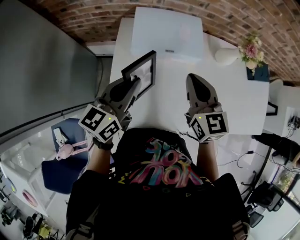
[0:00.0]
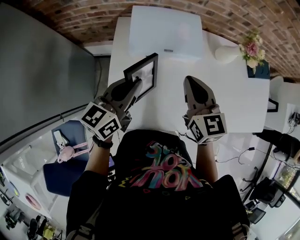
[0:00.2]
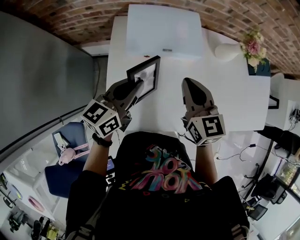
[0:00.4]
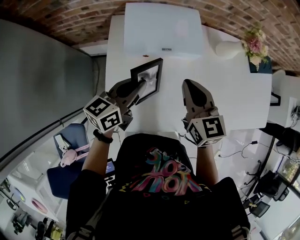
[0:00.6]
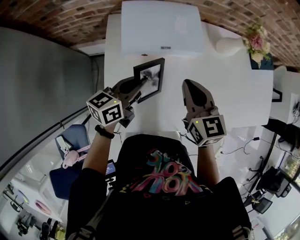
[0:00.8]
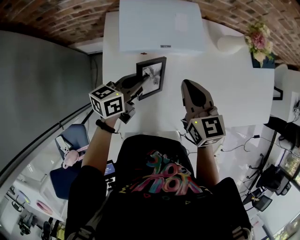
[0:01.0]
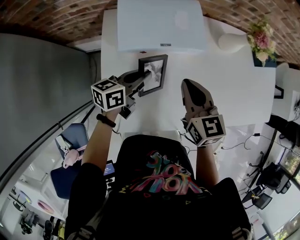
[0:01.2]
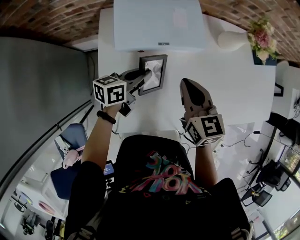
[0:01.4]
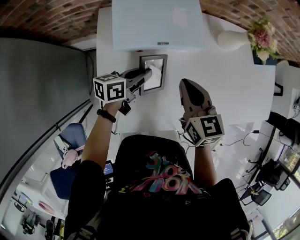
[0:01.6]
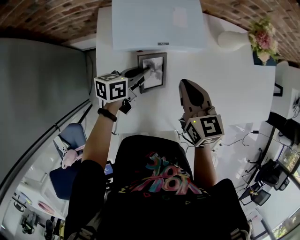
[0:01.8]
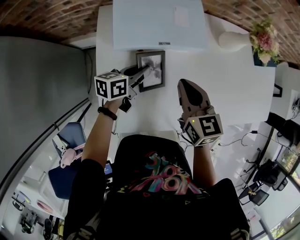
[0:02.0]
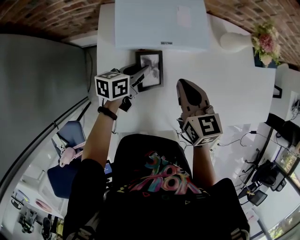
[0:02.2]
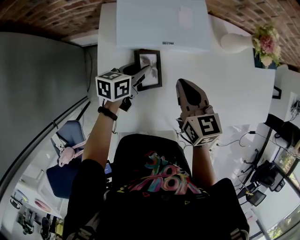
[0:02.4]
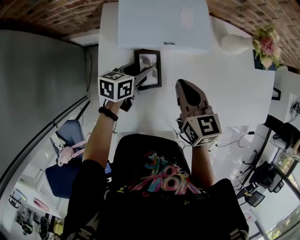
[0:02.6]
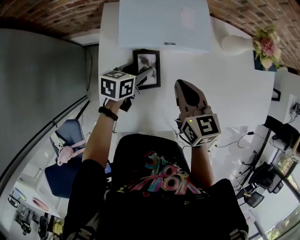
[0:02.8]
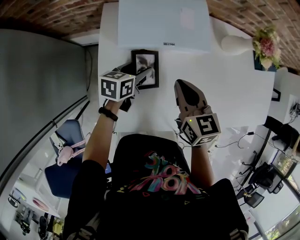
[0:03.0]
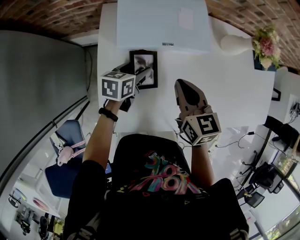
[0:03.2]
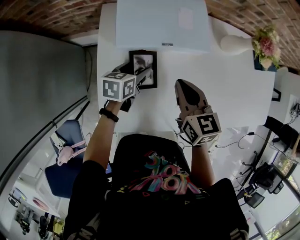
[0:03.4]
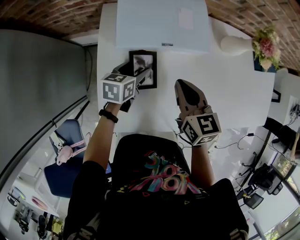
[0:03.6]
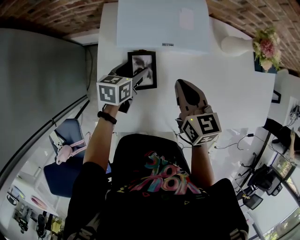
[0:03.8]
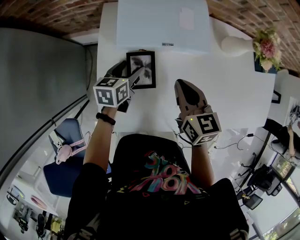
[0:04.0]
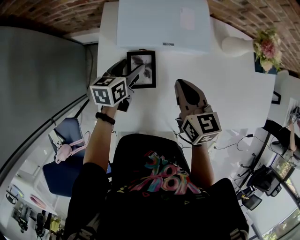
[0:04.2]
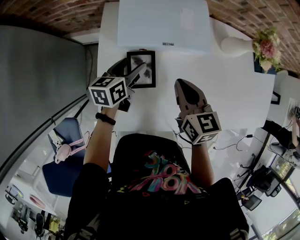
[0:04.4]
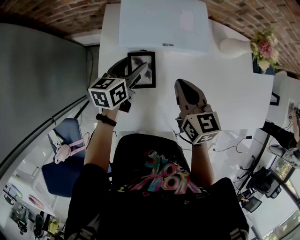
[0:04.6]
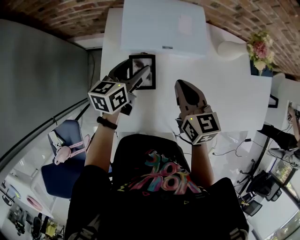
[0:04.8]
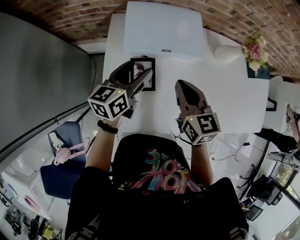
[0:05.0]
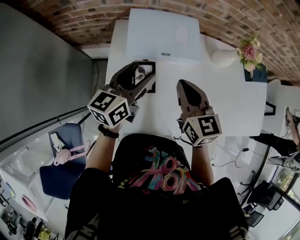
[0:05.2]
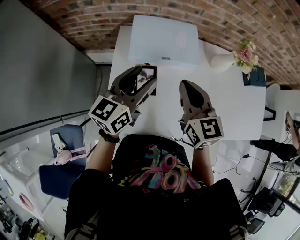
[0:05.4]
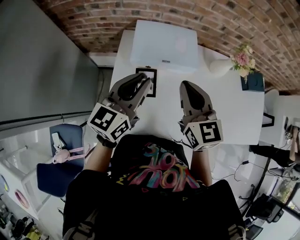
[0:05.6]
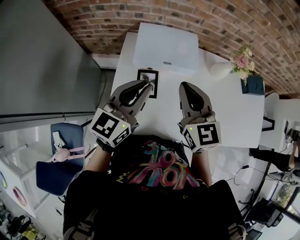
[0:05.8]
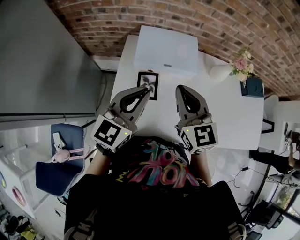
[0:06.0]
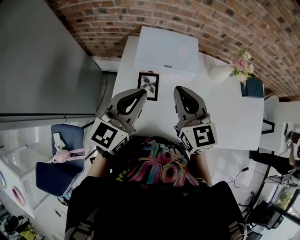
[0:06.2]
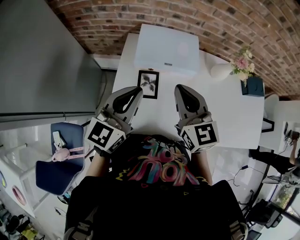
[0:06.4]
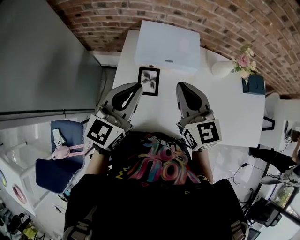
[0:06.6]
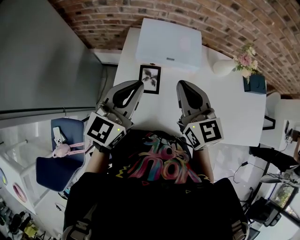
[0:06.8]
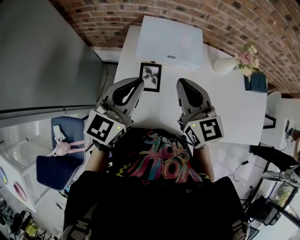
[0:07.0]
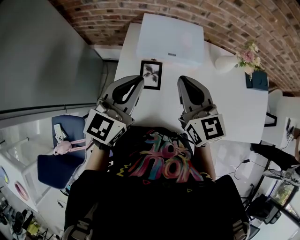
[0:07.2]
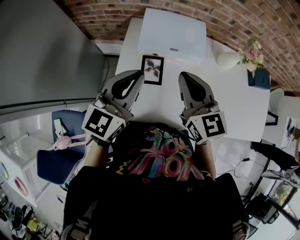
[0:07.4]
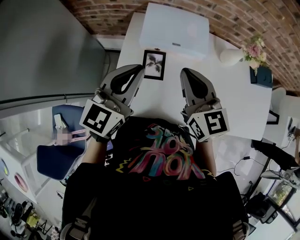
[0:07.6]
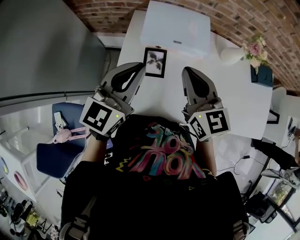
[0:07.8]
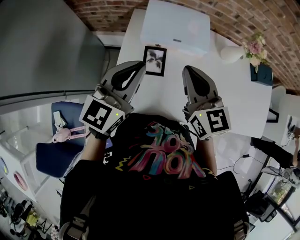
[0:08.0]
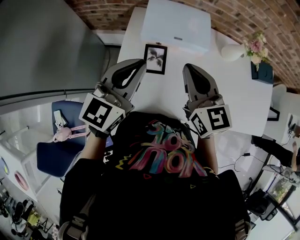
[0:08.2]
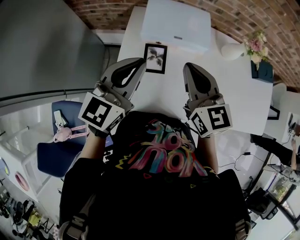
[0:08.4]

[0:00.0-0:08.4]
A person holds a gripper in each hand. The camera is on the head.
0:00.0 to 0:01.4: The right gripper shifts approximately 10 cm downward, while the left gripper goes about 20 cm downward and forward, and swivels roughly 40 degrees.
0:01.4 to 0:02.8: The left gripper moves roughly 5 cm, and opens.
0:02.8 to 0:04.2: The grippers move only a little.
0:04.2 to 0:05.6: The right gripper moves upward, approximately 20 cm, and swivels roughly 30 degrees; the left gripper shifts some 30 cm upward, swivels some 40 degrees, and closes its fingers.
0:05.6 to 0:08.4: There are only small adjustments of the grippers.

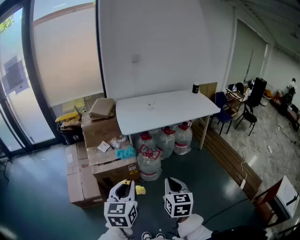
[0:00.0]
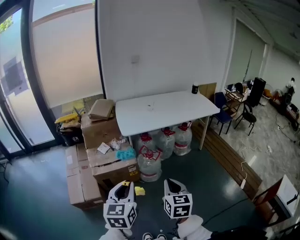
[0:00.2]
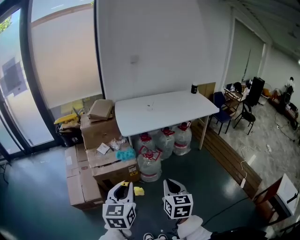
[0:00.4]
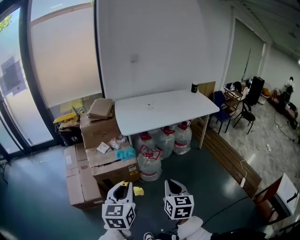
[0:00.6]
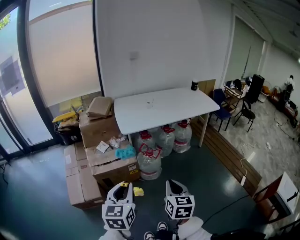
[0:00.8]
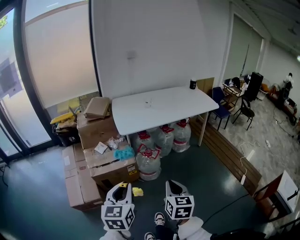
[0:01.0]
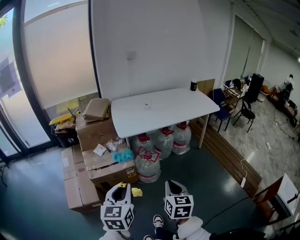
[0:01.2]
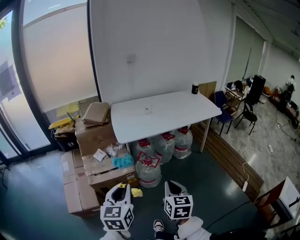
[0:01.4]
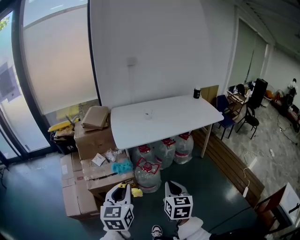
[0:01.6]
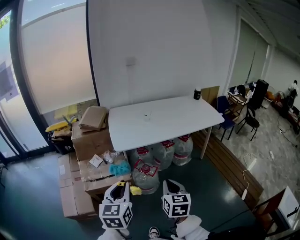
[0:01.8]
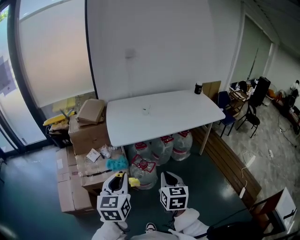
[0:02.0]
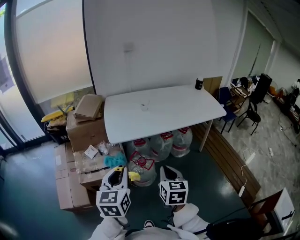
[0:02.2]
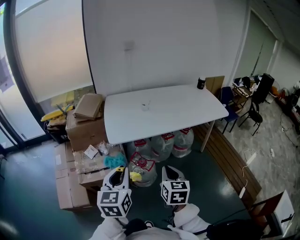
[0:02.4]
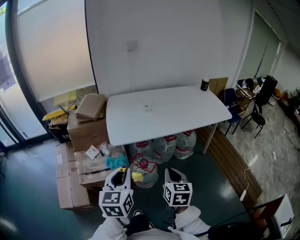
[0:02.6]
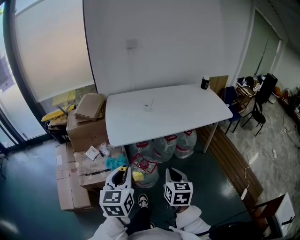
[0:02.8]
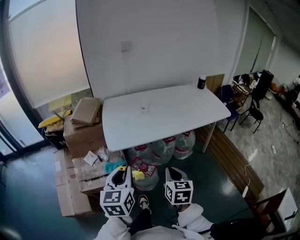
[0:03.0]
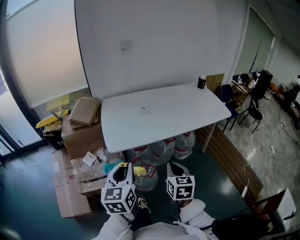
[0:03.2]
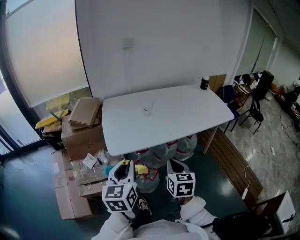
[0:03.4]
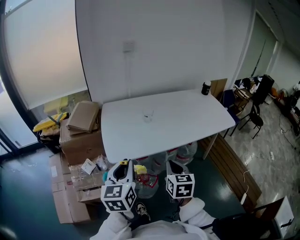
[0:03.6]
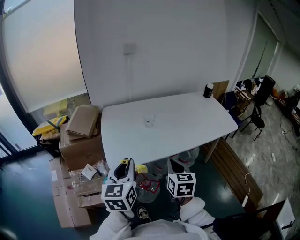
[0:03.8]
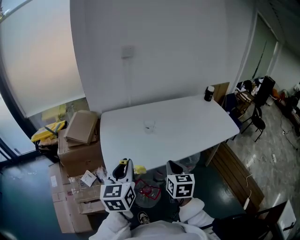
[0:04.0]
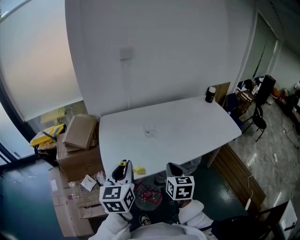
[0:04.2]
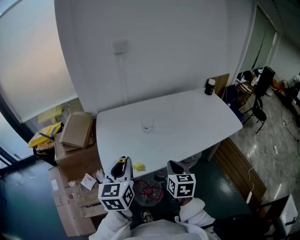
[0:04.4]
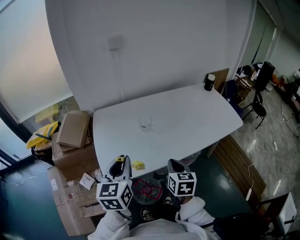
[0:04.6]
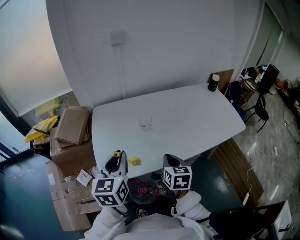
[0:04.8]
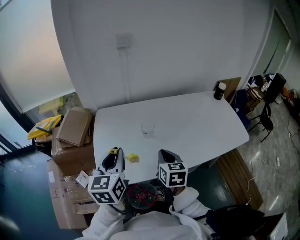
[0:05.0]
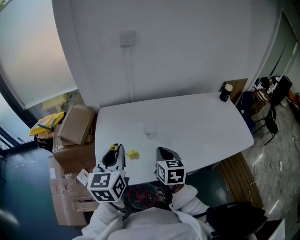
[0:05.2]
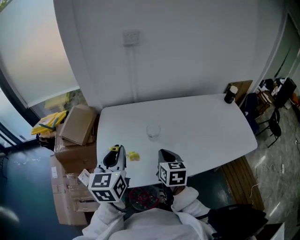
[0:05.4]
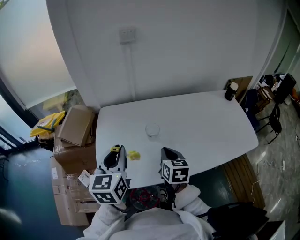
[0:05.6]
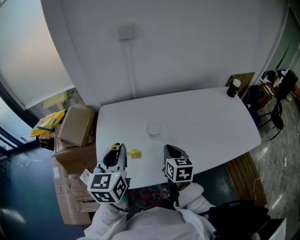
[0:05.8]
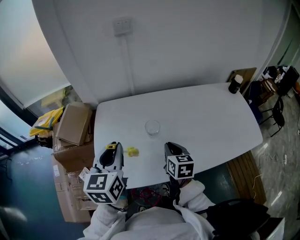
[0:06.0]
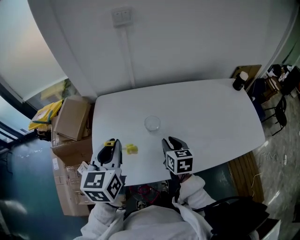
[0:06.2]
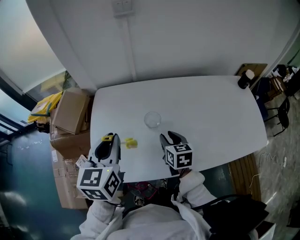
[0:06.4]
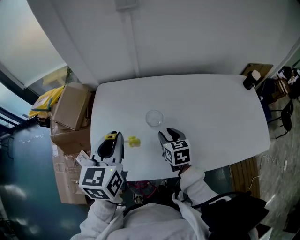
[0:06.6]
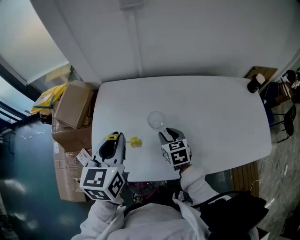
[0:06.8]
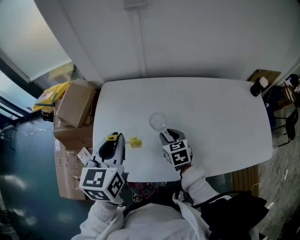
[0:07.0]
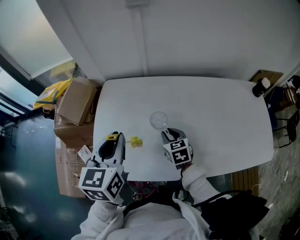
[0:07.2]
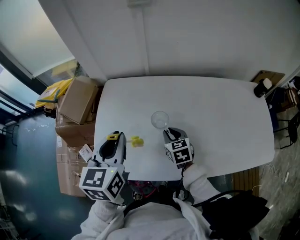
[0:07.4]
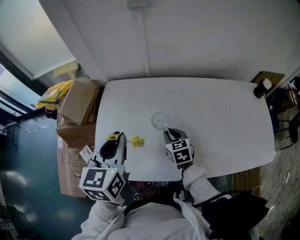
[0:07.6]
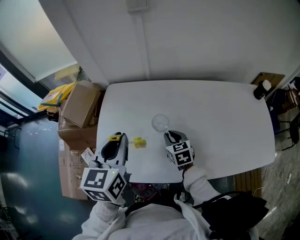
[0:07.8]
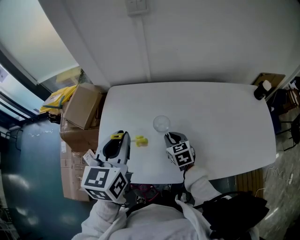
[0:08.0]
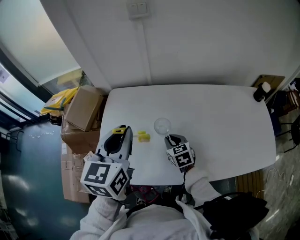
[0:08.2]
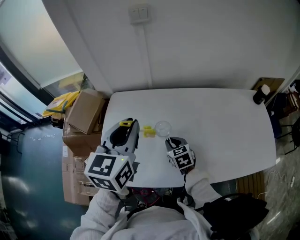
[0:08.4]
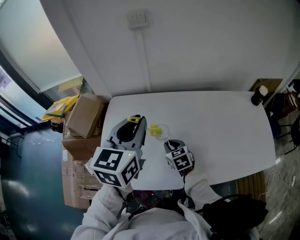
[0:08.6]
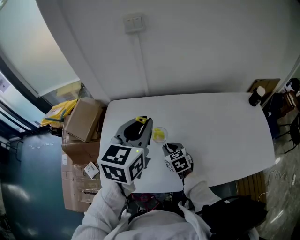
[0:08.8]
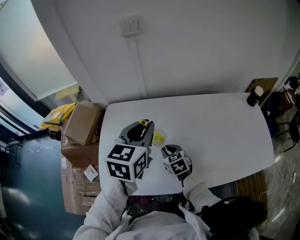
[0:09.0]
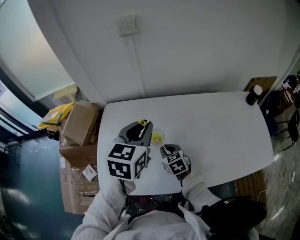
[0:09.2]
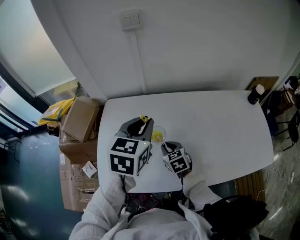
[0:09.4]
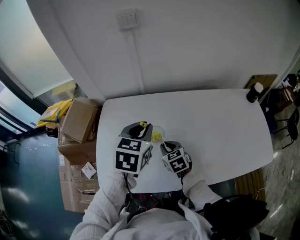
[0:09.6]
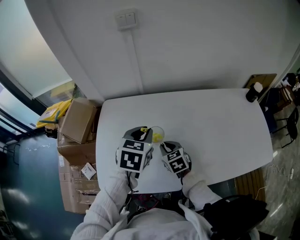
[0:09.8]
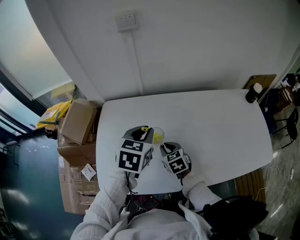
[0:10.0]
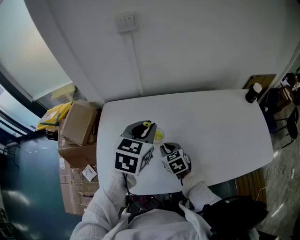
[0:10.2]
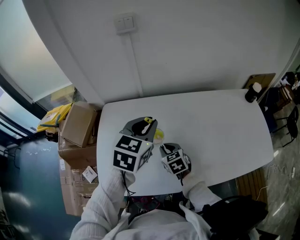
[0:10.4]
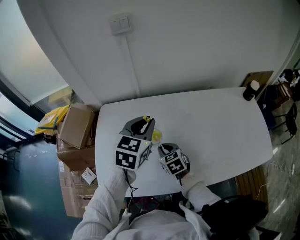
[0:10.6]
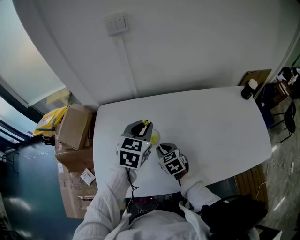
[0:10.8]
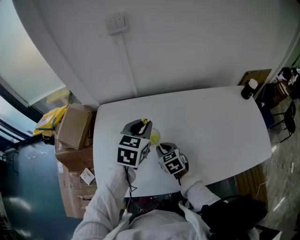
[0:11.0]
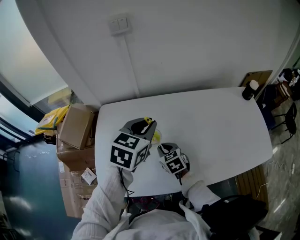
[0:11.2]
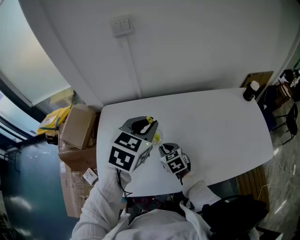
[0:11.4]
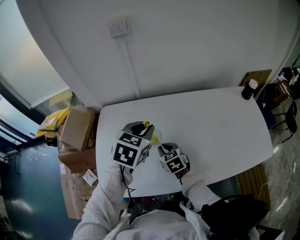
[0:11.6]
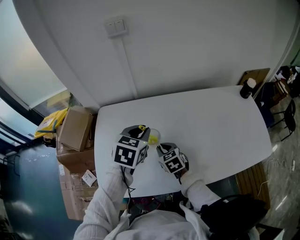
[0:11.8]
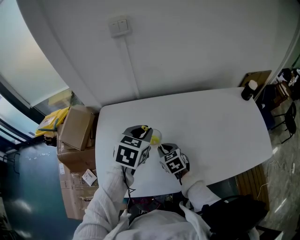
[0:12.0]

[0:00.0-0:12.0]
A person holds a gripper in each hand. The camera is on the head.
0:00.0 to 0:01.6: The two grippers go approximately 15 cm forward.
0:01.6 to 0:03.0: Both grippers move forward, approximately 15 cm.
0:03.0 to 0:04.4: Both grippers move forward, about 25 cm.
0:04.4 to 0:06.0: Both grippers move forward, roughly 20 cm.
0:06.0 to 0:07.6: The right gripper moves downward and forward, about 10 cm, and rotates about 30 degrees.
0:07.6 to 0:09.0: The left gripper moves to the right and forward, some 15 cm.
0:09.0 to 0:10.4: The left gripper travels downward and back again, roughly 10 cm each way.
0:10.4 to 0:12.0: The left gripper swings up and down, roughly 10 cm each way, with 2 reversals.

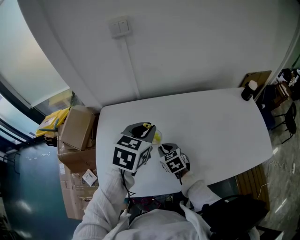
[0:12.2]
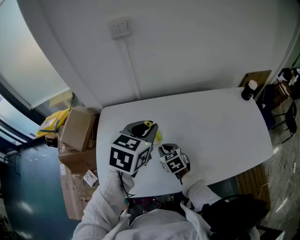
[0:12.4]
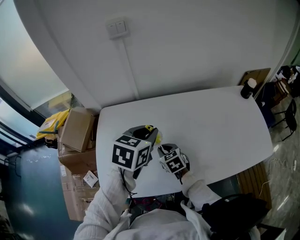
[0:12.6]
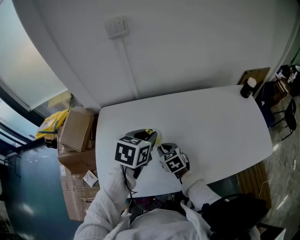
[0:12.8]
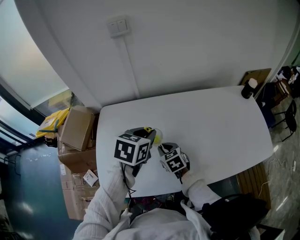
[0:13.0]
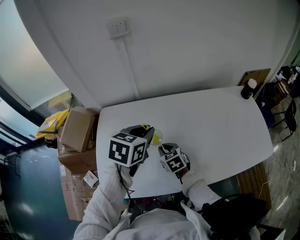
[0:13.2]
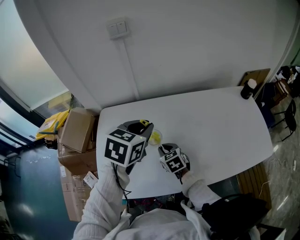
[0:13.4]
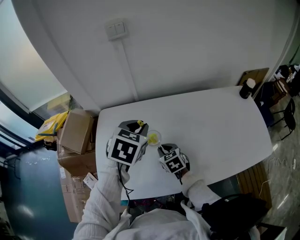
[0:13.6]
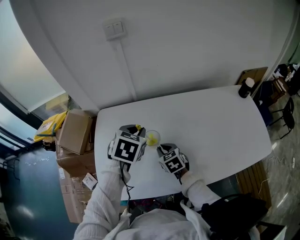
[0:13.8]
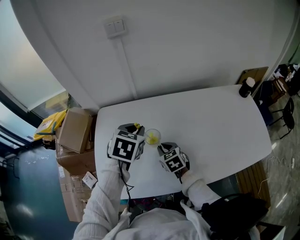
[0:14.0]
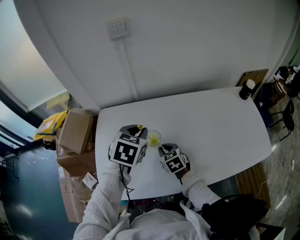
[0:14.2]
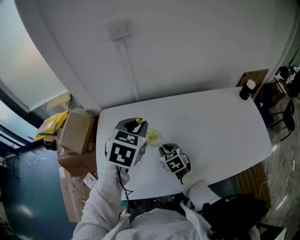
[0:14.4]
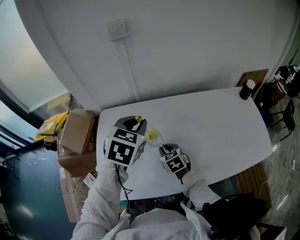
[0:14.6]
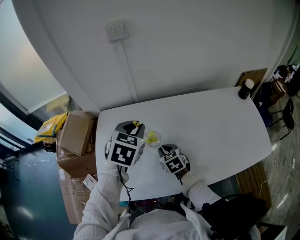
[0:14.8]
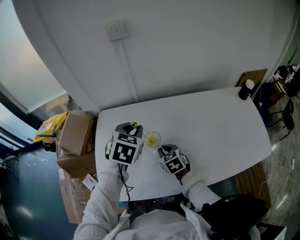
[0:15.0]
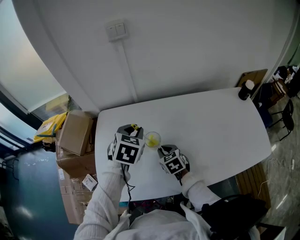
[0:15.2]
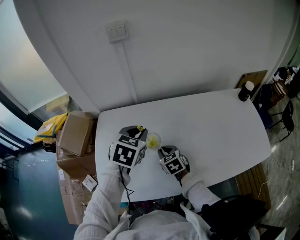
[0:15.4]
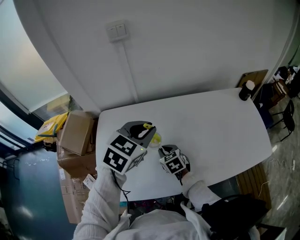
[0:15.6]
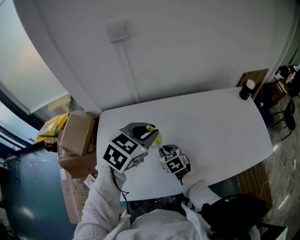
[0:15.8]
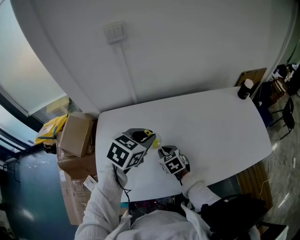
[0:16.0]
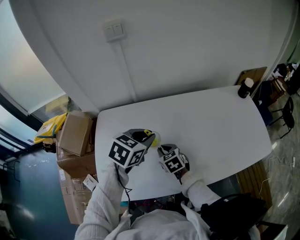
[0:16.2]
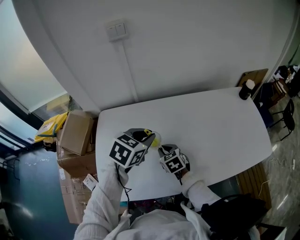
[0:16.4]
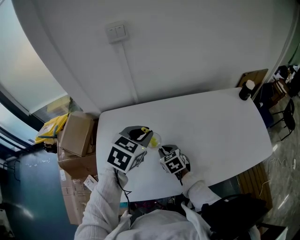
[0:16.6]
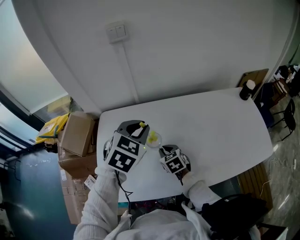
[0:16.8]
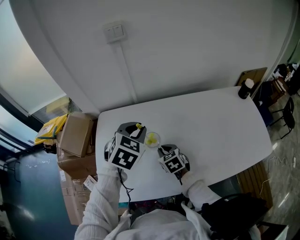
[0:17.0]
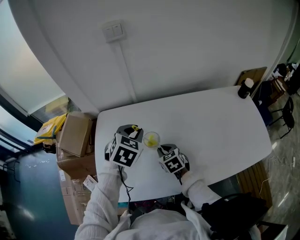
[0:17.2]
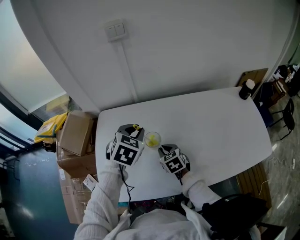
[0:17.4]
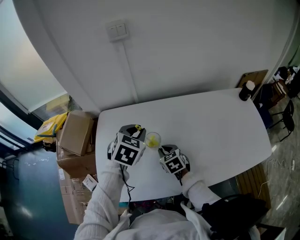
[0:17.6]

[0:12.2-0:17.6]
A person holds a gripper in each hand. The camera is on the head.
0:12.2 to 0:13.6: The grippers make only small movements.
0:13.6 to 0:15.0: The left gripper swings up and down, some 5 cm each way, with 2 reversals.
0:15.0 to 0:16.2: The left gripper heads to the right, covering approximately 5 cm, reaches approximately 5 cm upward, then returns, and swivels roughly 20 degrees.
0:16.2 to 0:17.6: The left gripper changes place by some 5 cm.
